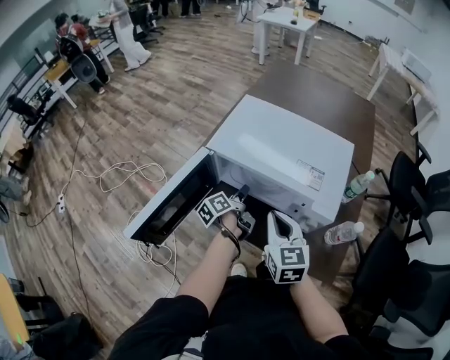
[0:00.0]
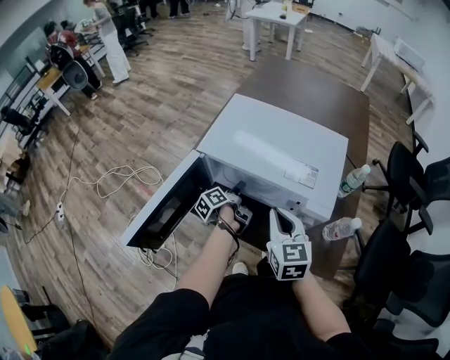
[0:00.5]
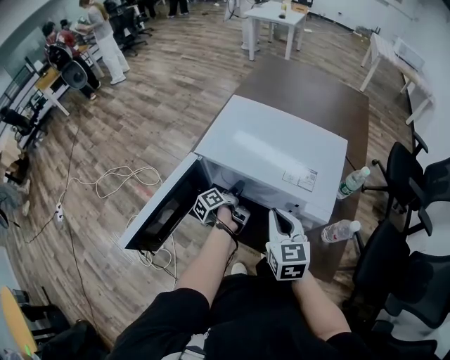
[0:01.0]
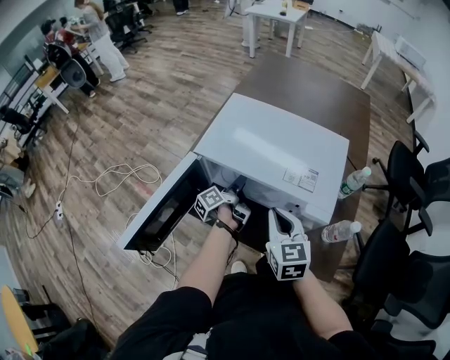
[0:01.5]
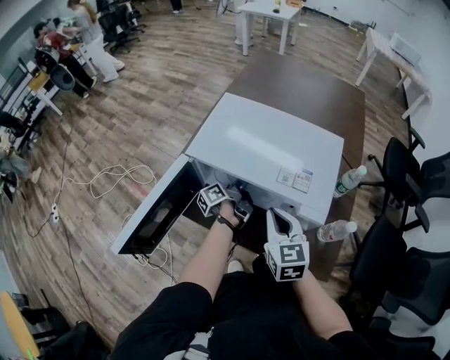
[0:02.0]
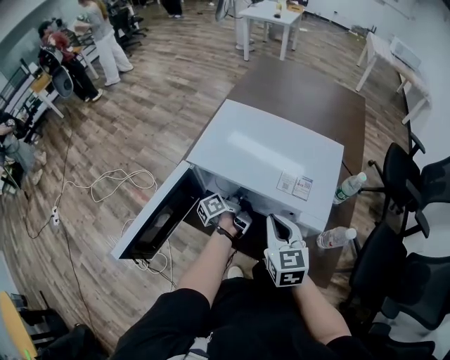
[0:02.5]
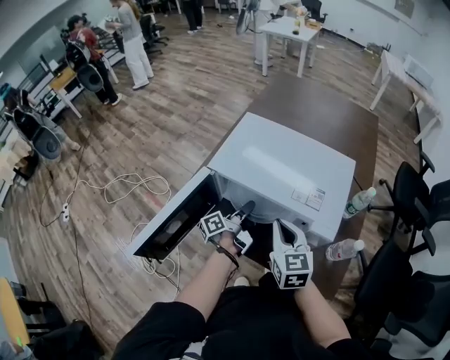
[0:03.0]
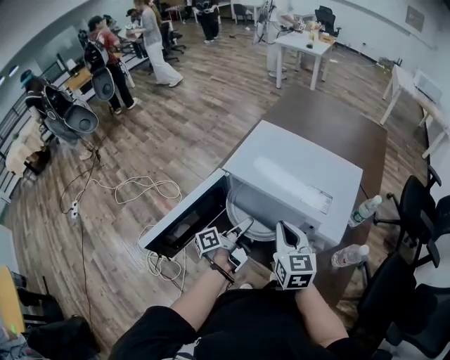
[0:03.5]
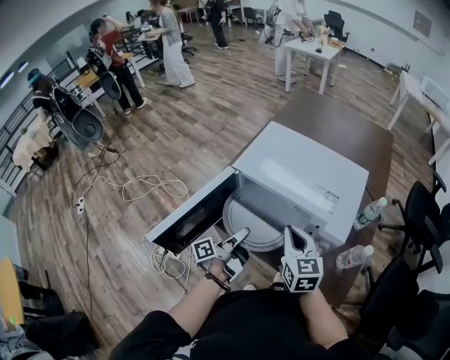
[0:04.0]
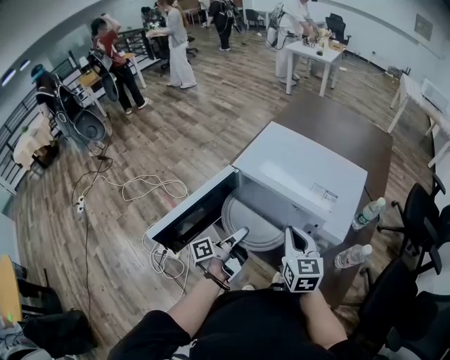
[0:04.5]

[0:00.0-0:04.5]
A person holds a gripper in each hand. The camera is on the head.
0:00.0 to 0:02.0: The left gripper travels forward and to the right by approximately 10 cm.
0:02.0 to 0:04.5: The left gripper is displaced backward, to the left and upward by about 20 cm, and closes its fingers.

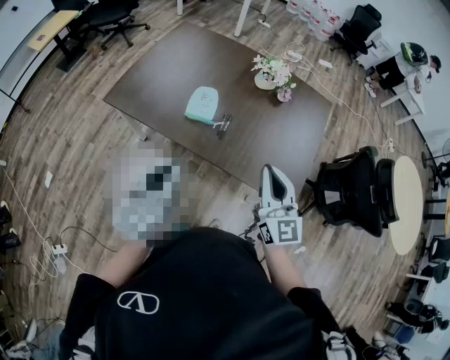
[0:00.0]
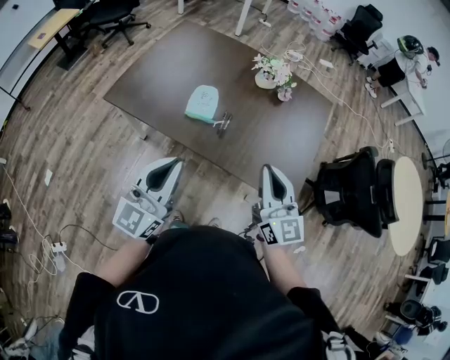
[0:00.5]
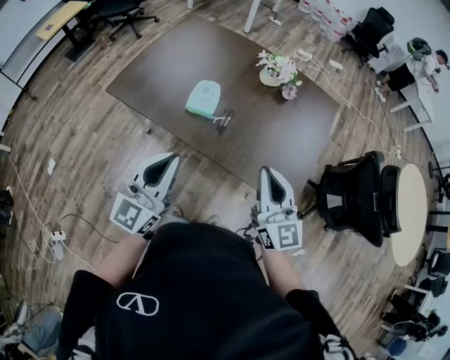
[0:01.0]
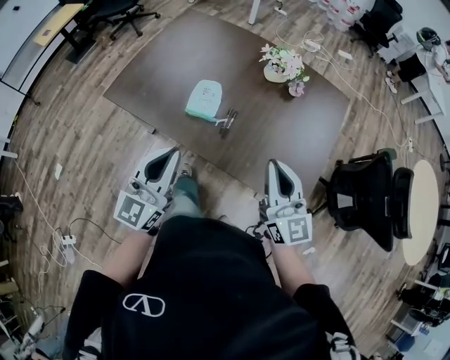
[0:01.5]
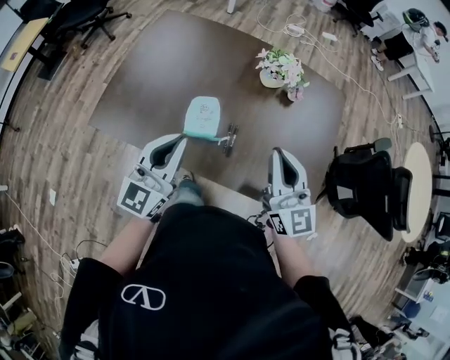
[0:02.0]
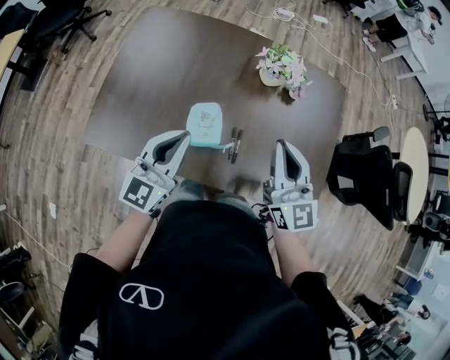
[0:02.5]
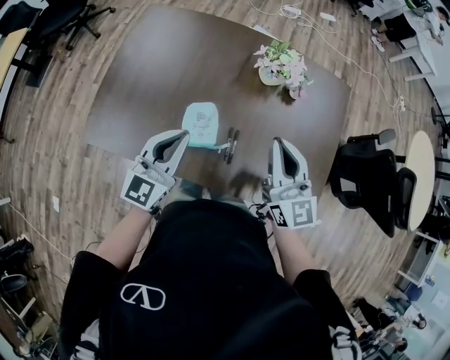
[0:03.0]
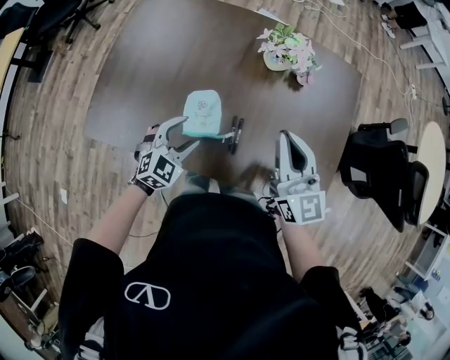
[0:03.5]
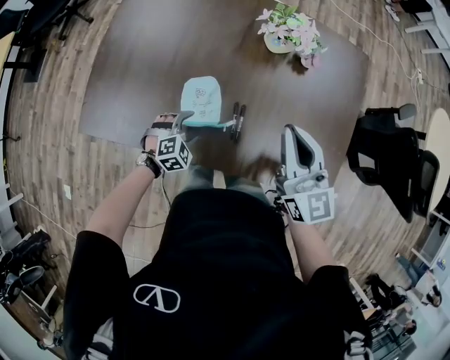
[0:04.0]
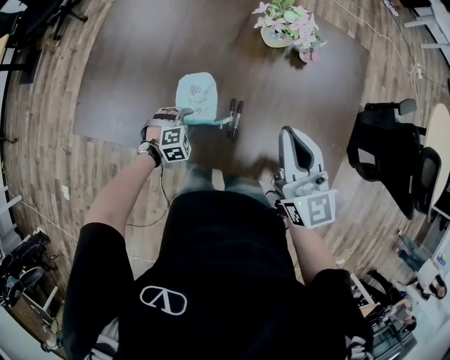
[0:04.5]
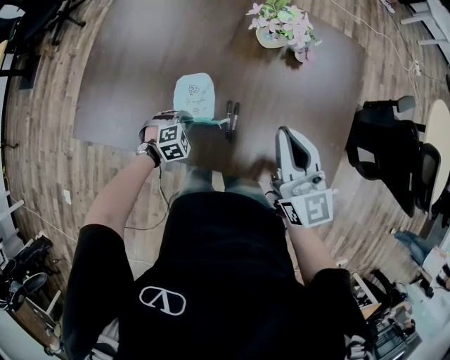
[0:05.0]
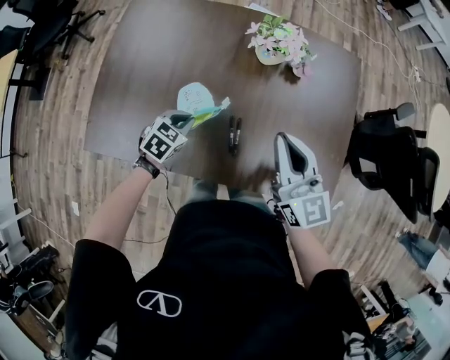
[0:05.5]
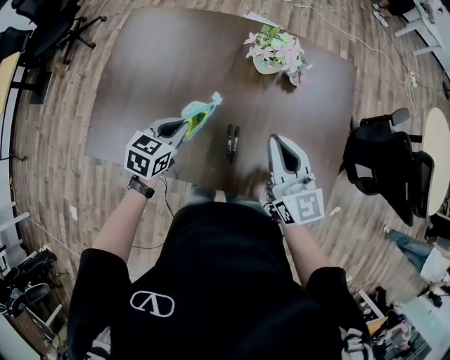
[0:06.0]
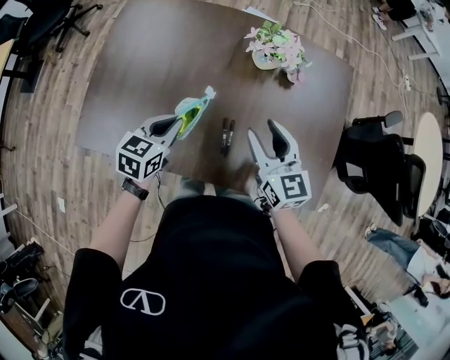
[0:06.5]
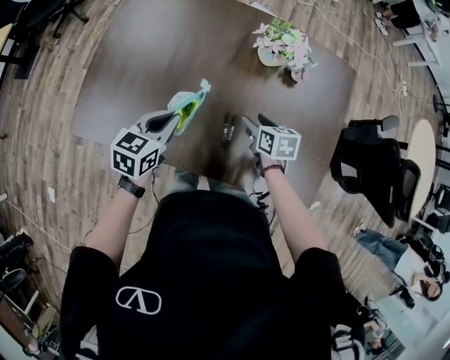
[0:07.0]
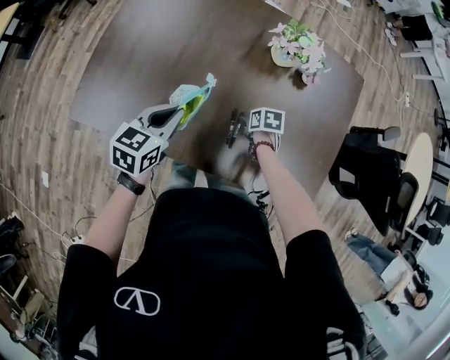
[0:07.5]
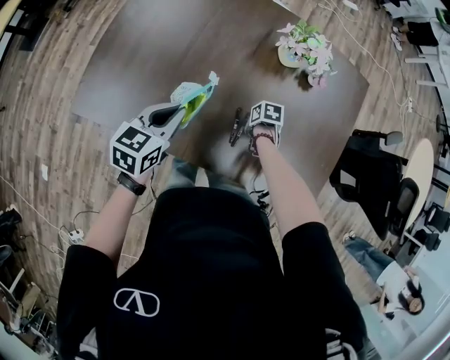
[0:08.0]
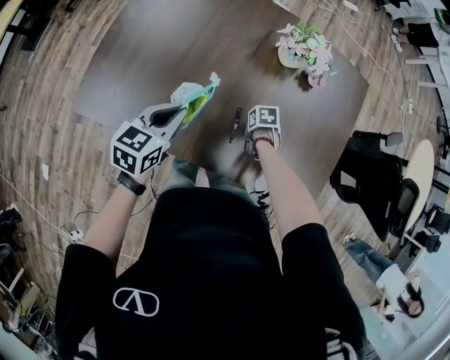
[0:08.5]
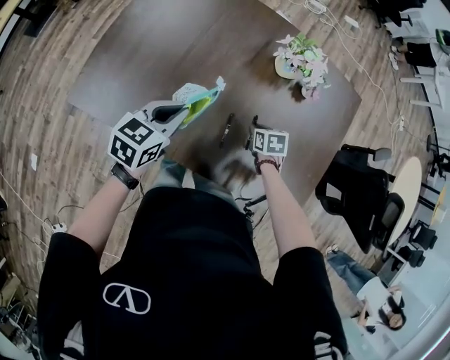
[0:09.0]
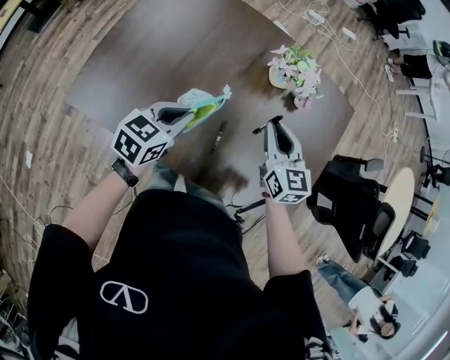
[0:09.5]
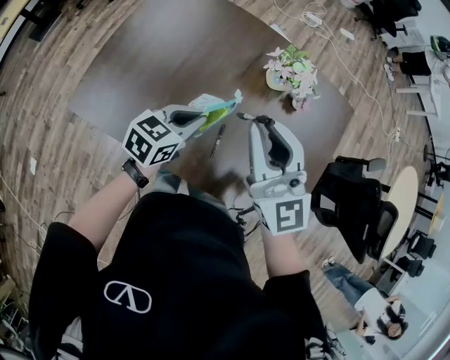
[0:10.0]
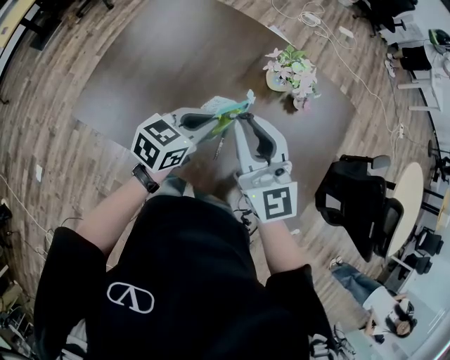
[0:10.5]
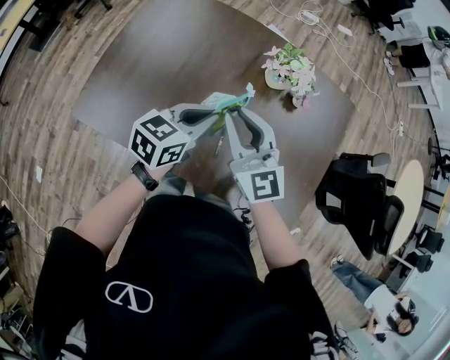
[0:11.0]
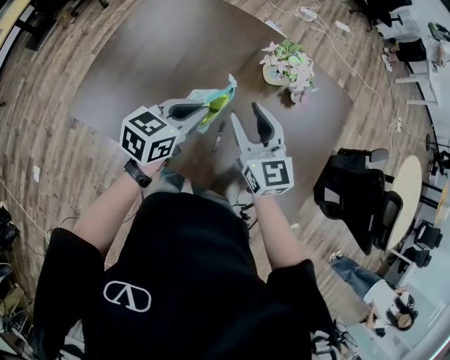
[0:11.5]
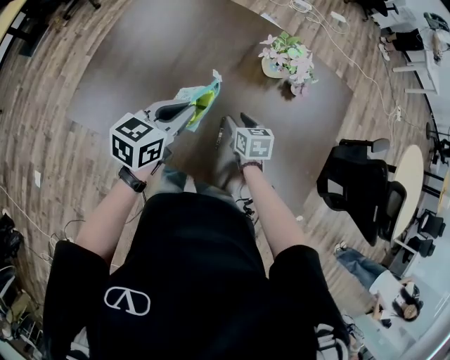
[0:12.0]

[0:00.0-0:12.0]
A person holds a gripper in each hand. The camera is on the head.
0:00.0 to 0:02.0: Both grippers move forward, roughly 25 cm.
0:02.0 to 0:04.0: The right gripper goes roughly 15 cm forward and downward; the left gripper shifts roughly 35 cm downward, points its fingers approximately 60 degrees further downward, and opens up.
0:04.0 to 0:06.0: The left gripper goes some 15 cm upward, twists some 50 degrees counterclockwise, seen from behind, and closes up.
0:06.0 to 0:08.0: The left gripper changes place by about 5 cm, while the right gripper shifts about 40 cm downward, tips its fingers downward by approximately 70 degrees, and opens up.
0:08.0 to 0:10.0: The right gripper moves upward, some 50 cm, and points its fingers approximately 80 degrees further upward. Meanwhile the left gripper changes place by some 10 cm.
0:10.0 to 0:12.0: The right gripper shifts approximately 35 cm downward, points its fingers some 50 degrees further downward, and opens.

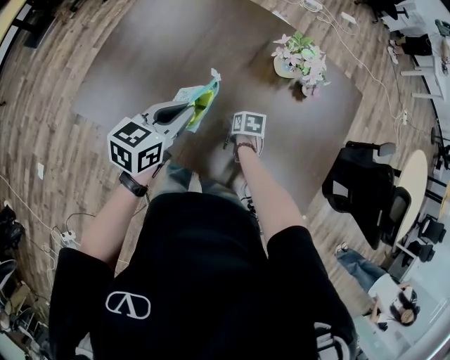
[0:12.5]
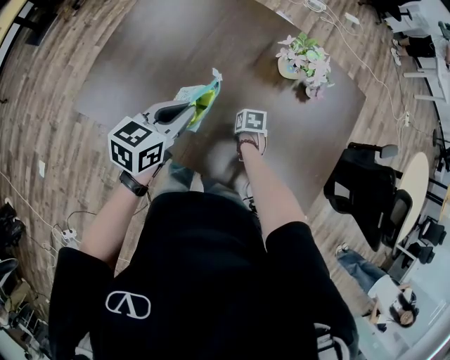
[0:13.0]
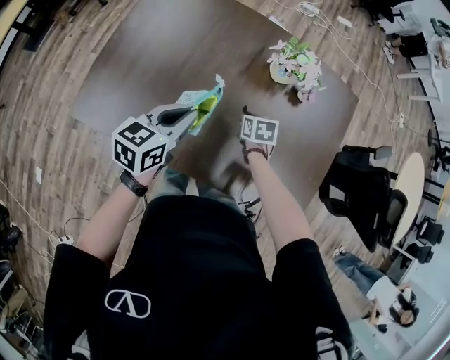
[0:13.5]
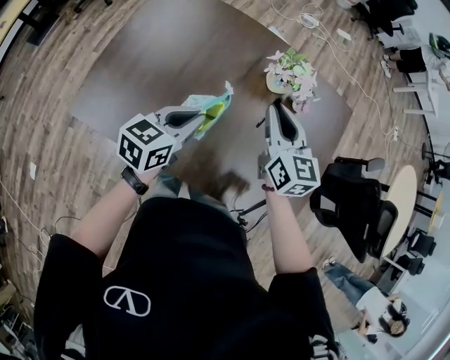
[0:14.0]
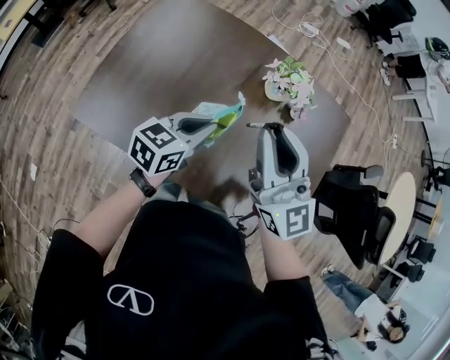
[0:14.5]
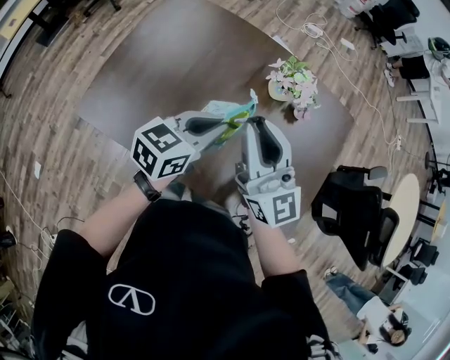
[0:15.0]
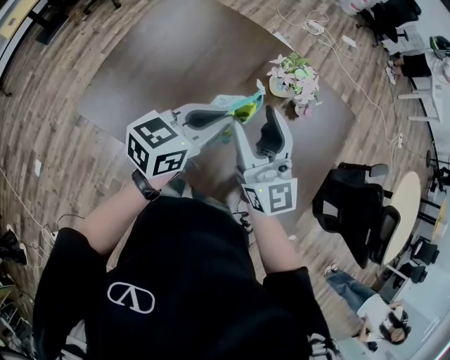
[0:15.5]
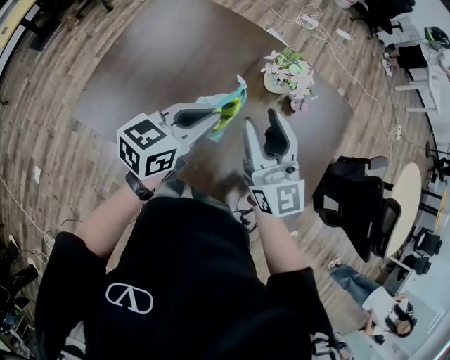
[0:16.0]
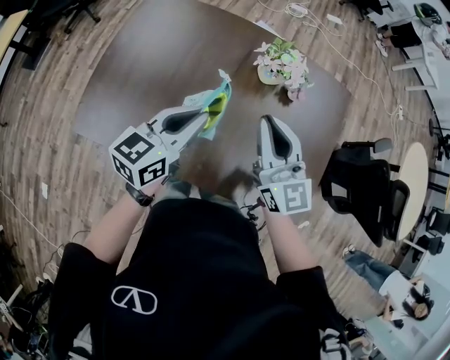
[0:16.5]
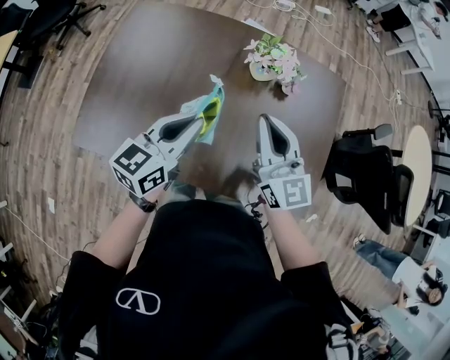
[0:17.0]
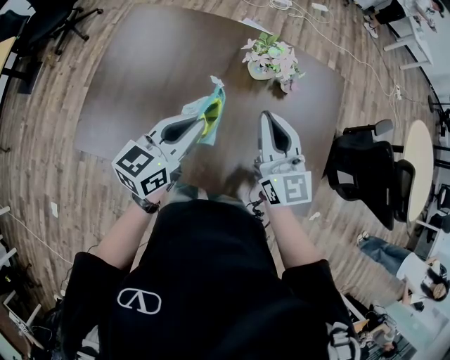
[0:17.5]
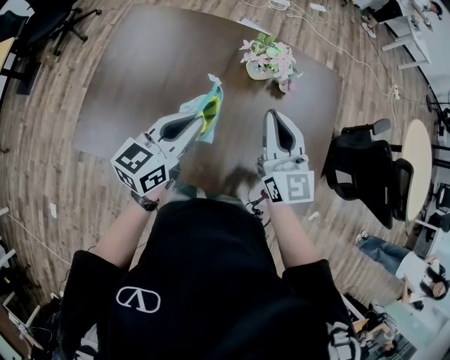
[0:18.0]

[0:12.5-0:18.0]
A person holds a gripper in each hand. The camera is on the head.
0:12.5 to 0:14.5: The left gripper ends up approximately 10 cm from where it was; the right gripper moves upward, some 50 cm, tilts its fingers about 80 degrees upward, and closes.
0:14.5 to 0:16.0: The left gripper travels upward by some 5 cm; the right gripper goes some 5 cm downward, and opens its fingers.
0:16.0 to 0:18.0: The right gripper is displaced to the right by approximately 5 cm, and closes up.

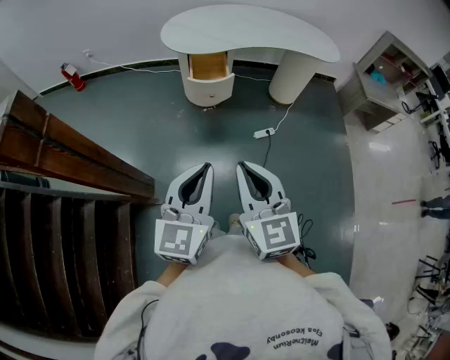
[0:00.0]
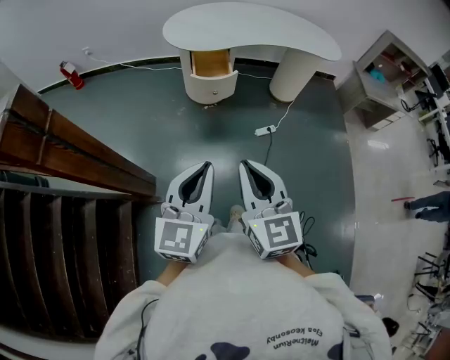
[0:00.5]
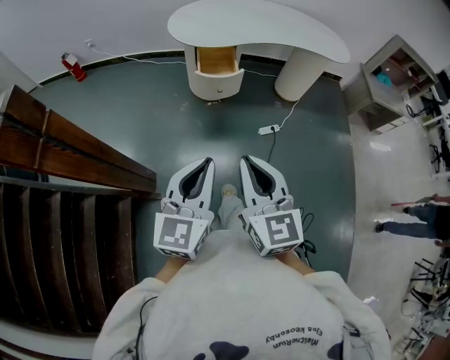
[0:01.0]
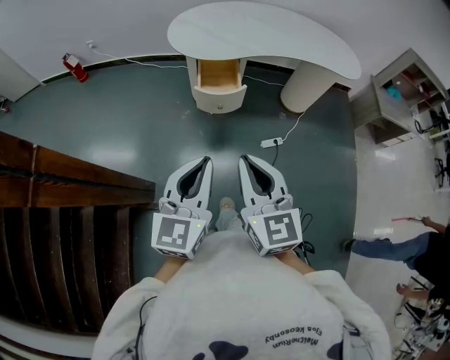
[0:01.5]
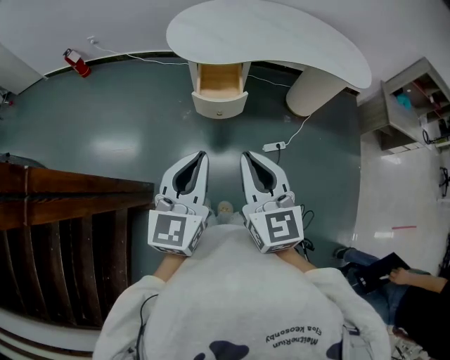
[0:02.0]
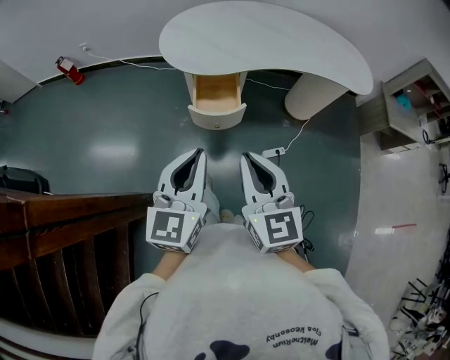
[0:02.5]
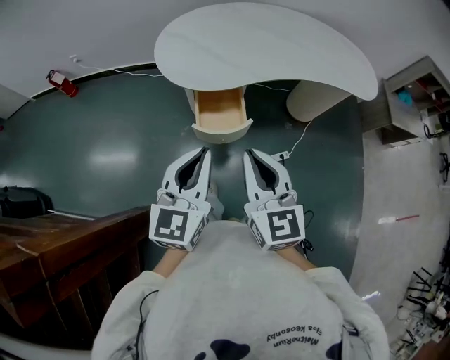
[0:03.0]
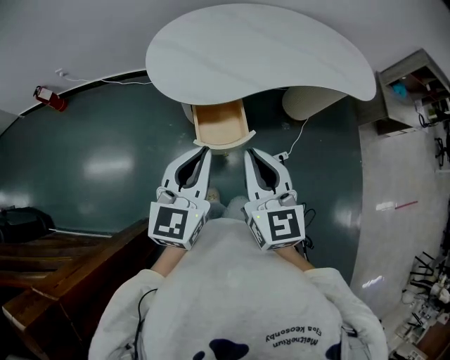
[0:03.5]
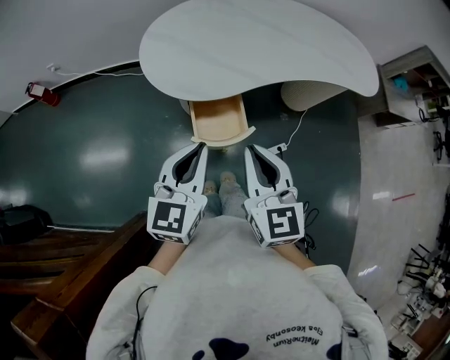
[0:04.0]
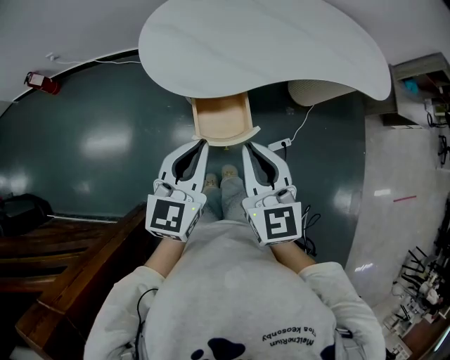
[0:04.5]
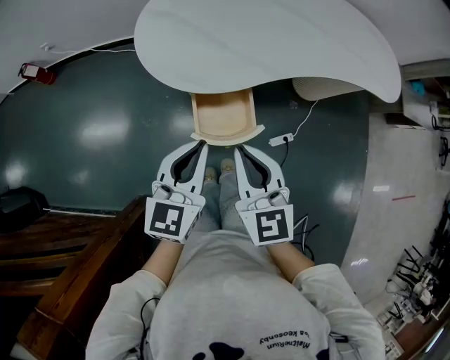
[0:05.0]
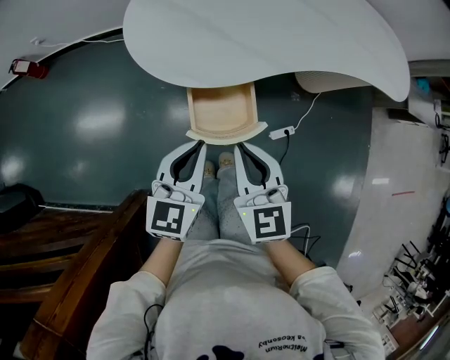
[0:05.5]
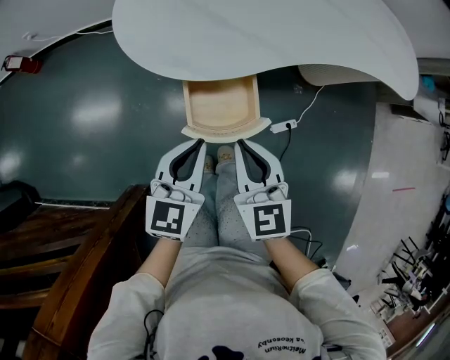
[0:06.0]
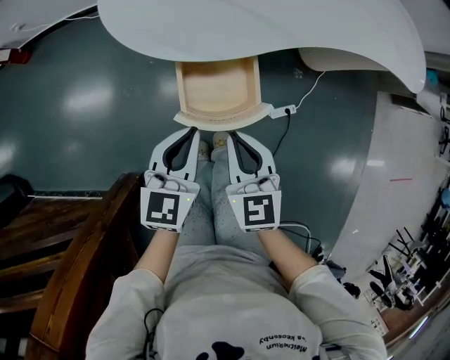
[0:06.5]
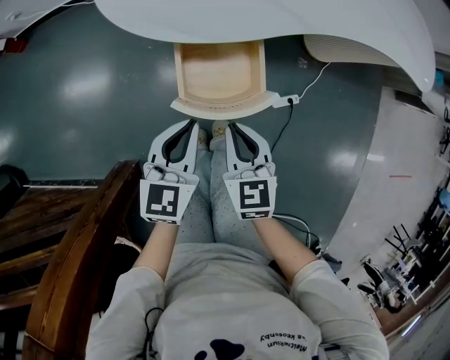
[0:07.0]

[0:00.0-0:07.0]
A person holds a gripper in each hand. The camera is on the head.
0:00.0 to 0:02.0: The grippers both shift forward by approximately 20 cm.
0:02.0 to 0:03.5: Both grippers travel together forward, about 25 cm.
0:03.5 to 0:05.0: The two grippers go about 10 cm downward and forward.
0:05.0 to 0:07.0: Both grippers move downward, roughly 20 cm.
